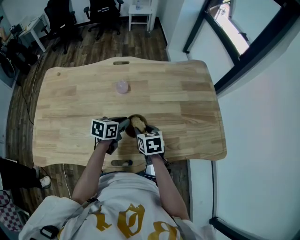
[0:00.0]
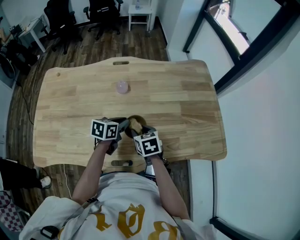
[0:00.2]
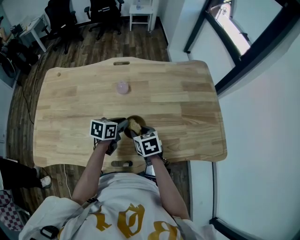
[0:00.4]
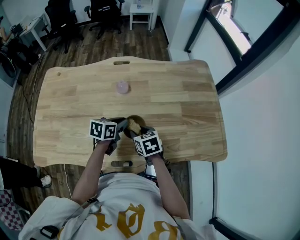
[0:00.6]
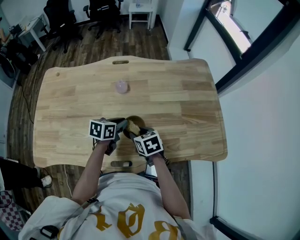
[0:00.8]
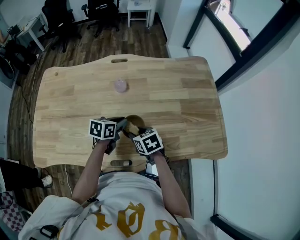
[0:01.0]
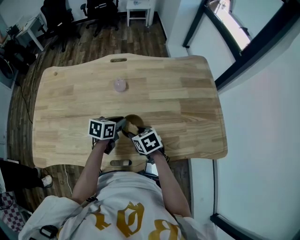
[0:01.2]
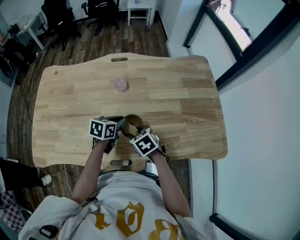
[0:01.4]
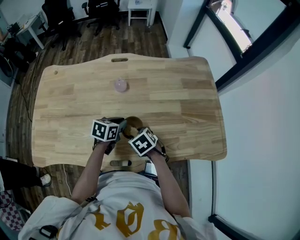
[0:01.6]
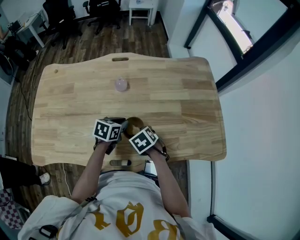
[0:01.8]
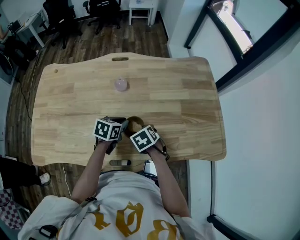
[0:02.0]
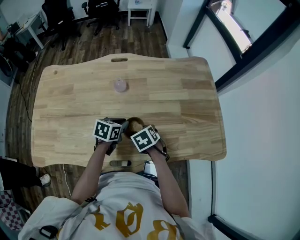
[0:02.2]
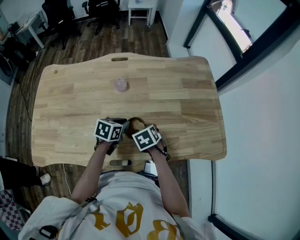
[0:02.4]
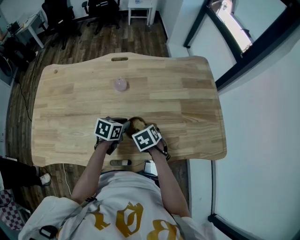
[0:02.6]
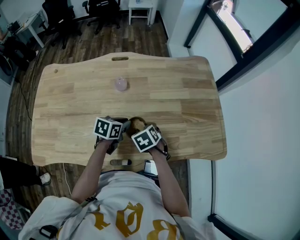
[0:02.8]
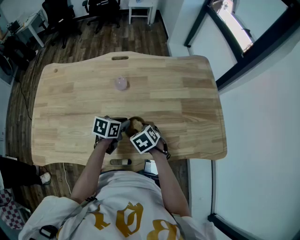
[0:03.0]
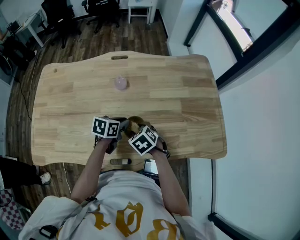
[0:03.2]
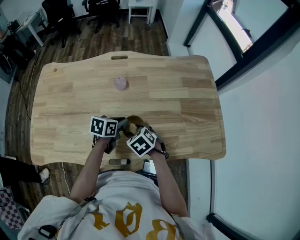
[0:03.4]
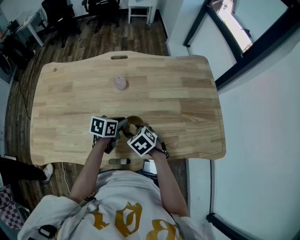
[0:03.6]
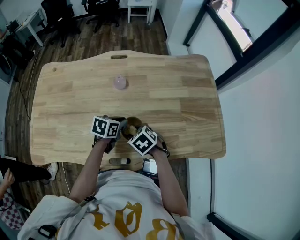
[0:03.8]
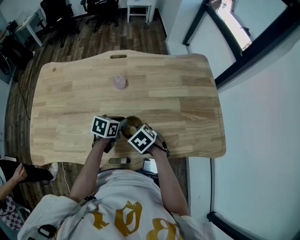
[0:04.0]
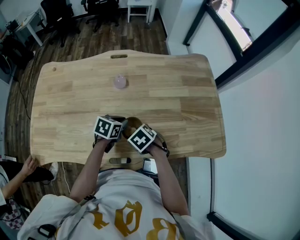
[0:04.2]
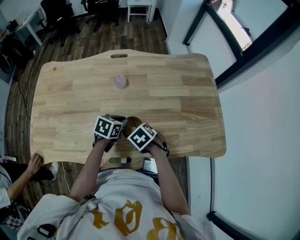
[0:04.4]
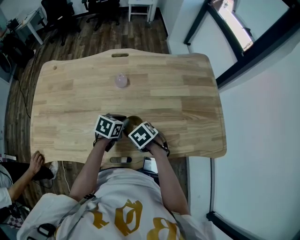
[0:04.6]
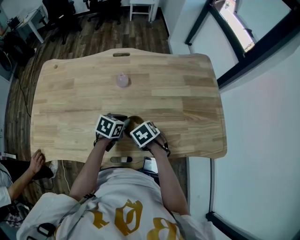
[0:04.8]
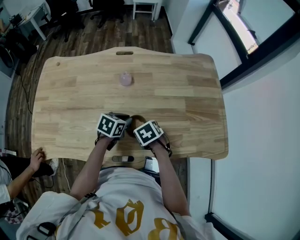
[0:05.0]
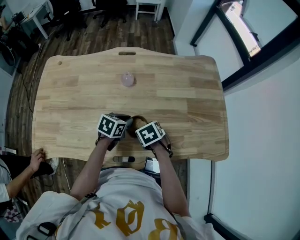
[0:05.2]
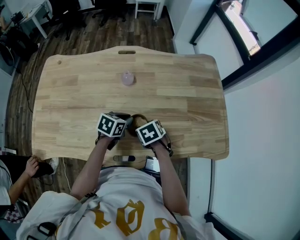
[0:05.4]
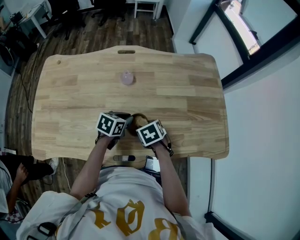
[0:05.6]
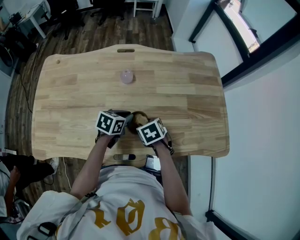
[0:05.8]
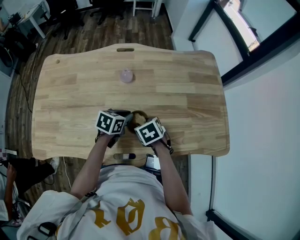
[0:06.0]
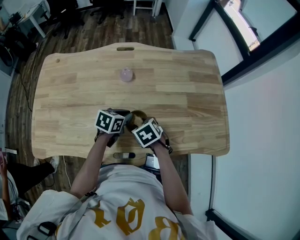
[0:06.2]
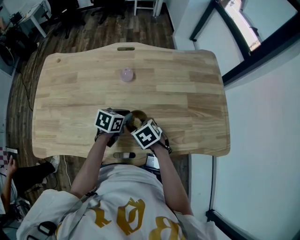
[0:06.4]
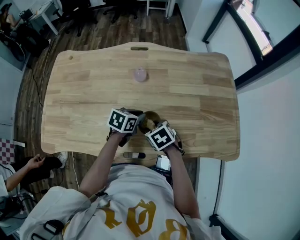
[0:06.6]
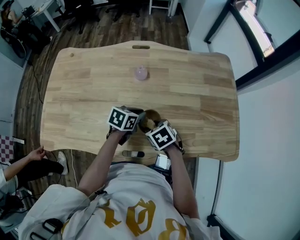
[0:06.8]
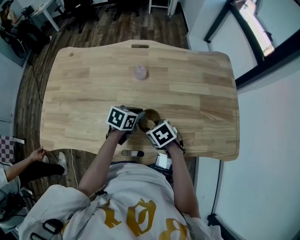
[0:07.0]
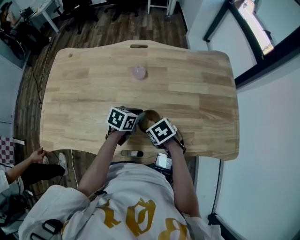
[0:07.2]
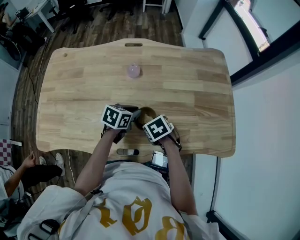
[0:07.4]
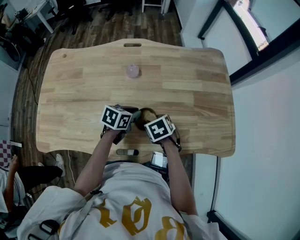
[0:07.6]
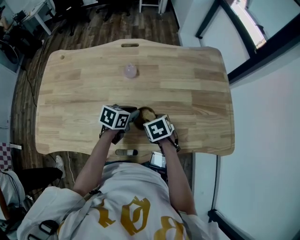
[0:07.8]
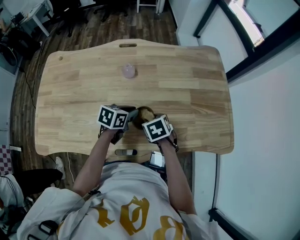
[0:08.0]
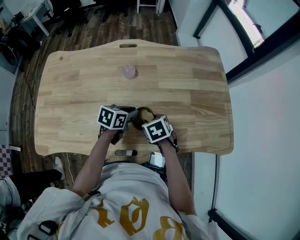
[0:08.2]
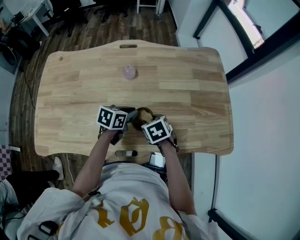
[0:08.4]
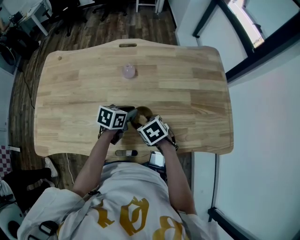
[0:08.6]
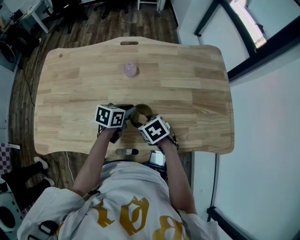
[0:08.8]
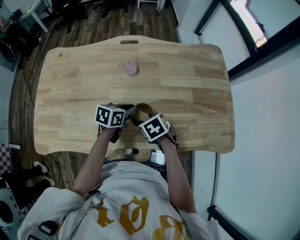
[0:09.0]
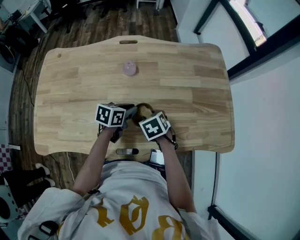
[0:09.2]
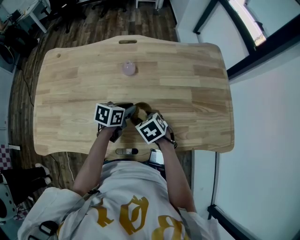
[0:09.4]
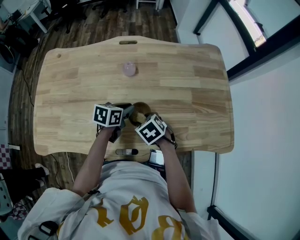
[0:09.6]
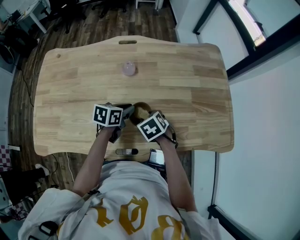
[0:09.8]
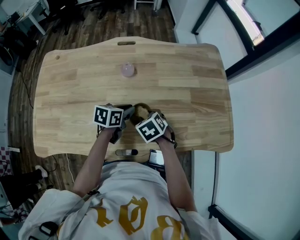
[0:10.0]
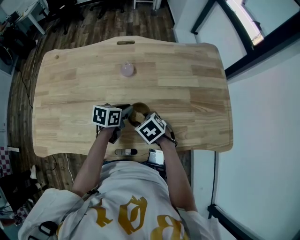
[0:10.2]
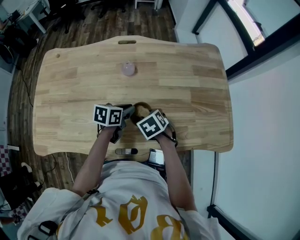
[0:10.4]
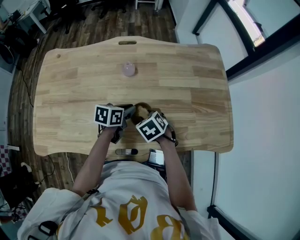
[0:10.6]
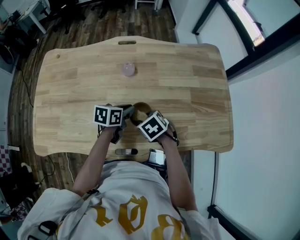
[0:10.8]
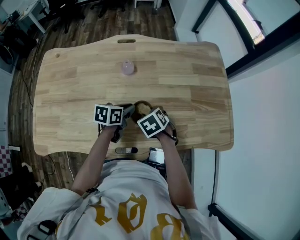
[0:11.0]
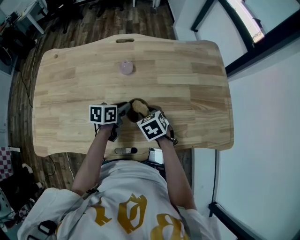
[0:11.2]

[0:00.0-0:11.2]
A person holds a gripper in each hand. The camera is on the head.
0:00.0 to 0:01.6: The right gripper shifts by about 5 cm, and turns by about 30 degrees.
0:01.6 to 0:06.4: The grippers move only a little.
0:06.4 to 0:08.0: The right gripper heads to the right, covering roughly 5 cm.
0:08.0 to 0:11.2: The grippers make only small movements.

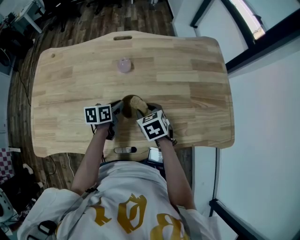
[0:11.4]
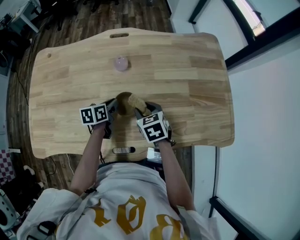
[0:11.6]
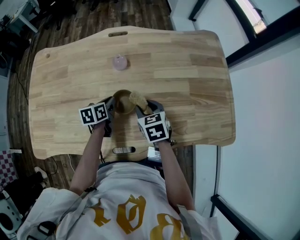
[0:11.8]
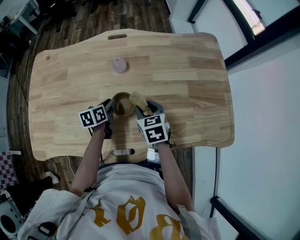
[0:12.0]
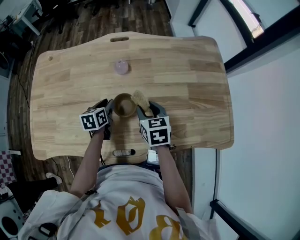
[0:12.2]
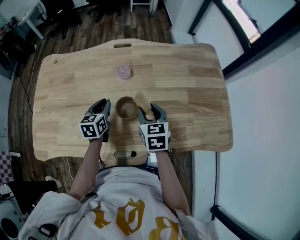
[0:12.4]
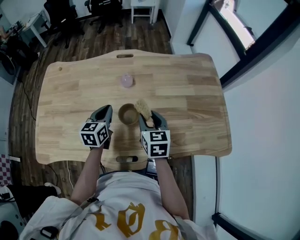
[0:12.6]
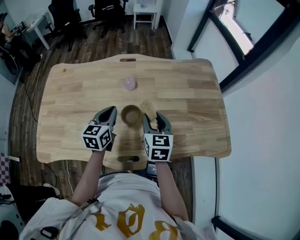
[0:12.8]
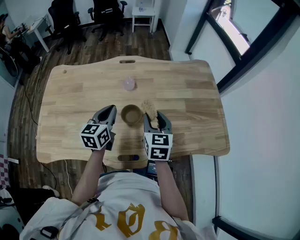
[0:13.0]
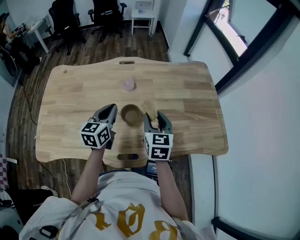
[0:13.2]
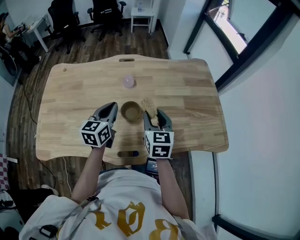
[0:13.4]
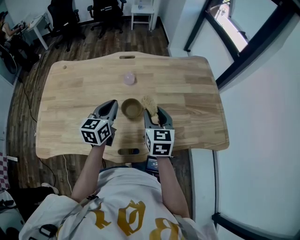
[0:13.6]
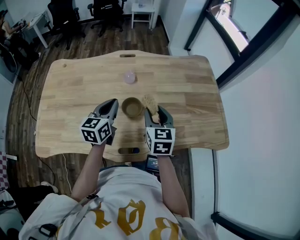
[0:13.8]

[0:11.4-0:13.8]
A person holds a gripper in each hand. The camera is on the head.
0:11.4 to 0:12.6: The right gripper is displaced upward by some 10 cm, and swivels some 30 degrees. The left gripper travels upward and to the left by about 10 cm, and swivels roughly 30 degrees.
0:12.6 to 0:13.8: The left gripper goes some 5 cm upward. The right gripper shifts by approximately 5 cm.

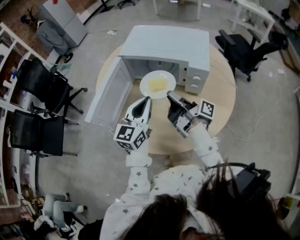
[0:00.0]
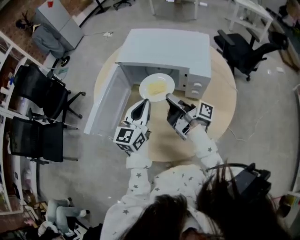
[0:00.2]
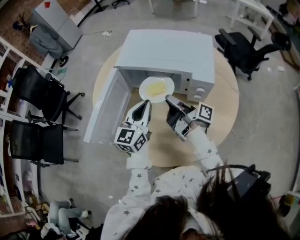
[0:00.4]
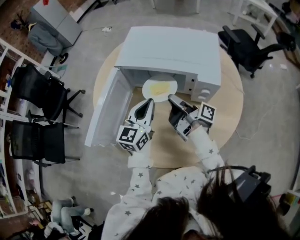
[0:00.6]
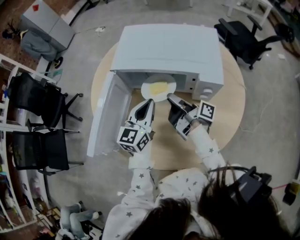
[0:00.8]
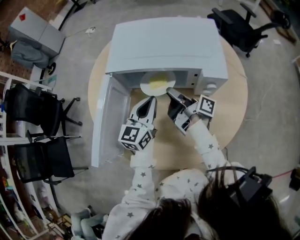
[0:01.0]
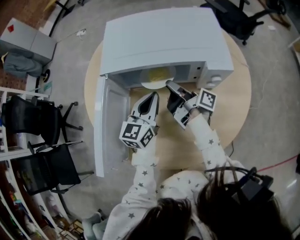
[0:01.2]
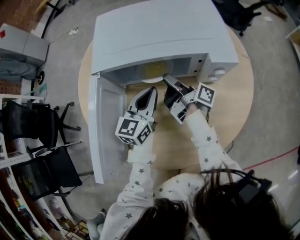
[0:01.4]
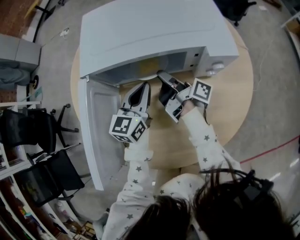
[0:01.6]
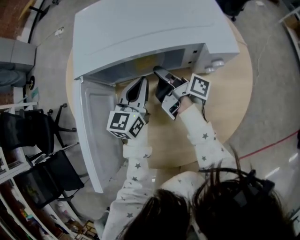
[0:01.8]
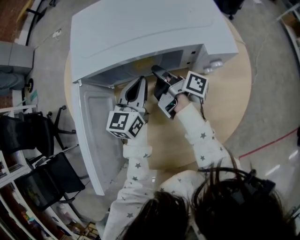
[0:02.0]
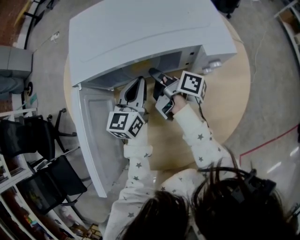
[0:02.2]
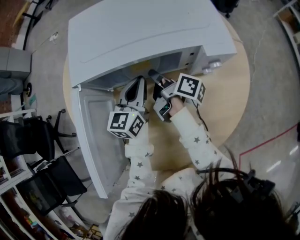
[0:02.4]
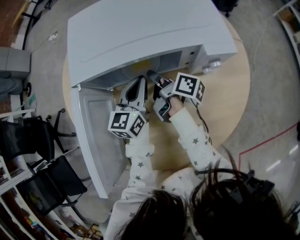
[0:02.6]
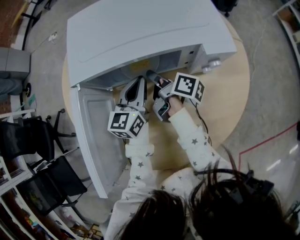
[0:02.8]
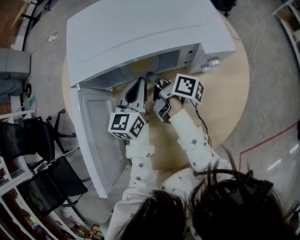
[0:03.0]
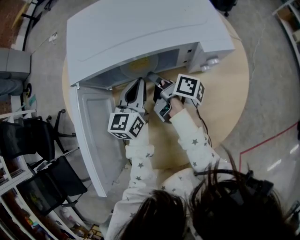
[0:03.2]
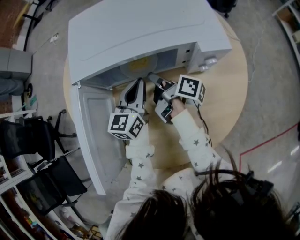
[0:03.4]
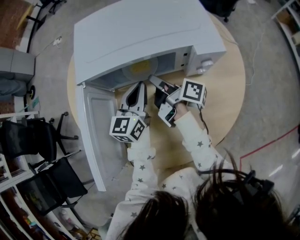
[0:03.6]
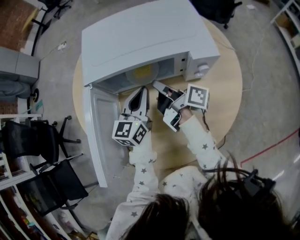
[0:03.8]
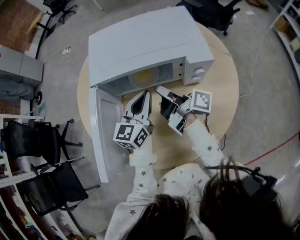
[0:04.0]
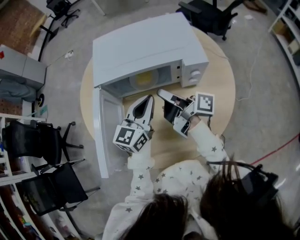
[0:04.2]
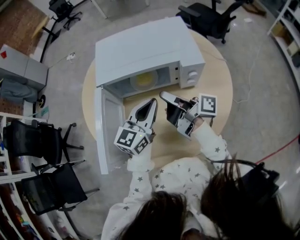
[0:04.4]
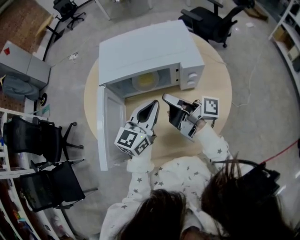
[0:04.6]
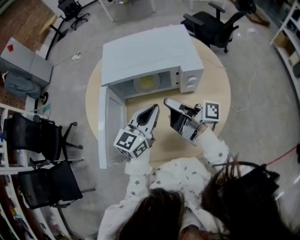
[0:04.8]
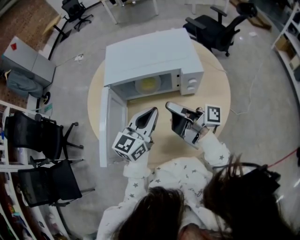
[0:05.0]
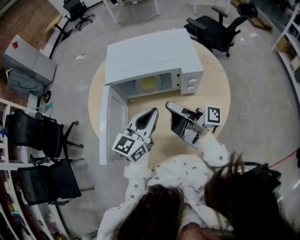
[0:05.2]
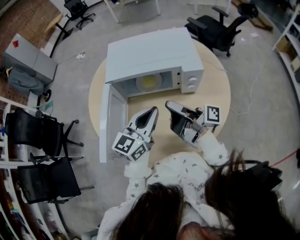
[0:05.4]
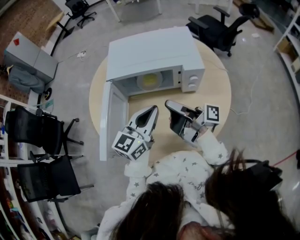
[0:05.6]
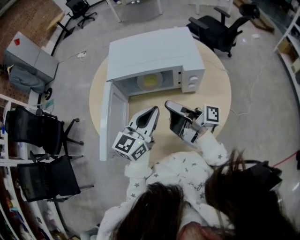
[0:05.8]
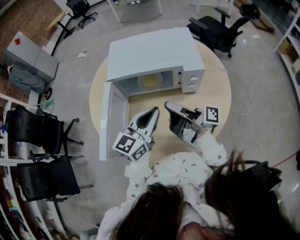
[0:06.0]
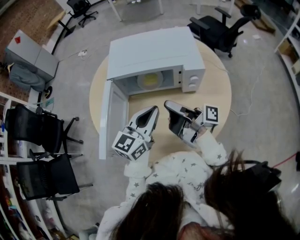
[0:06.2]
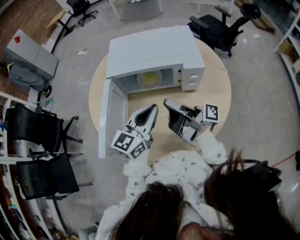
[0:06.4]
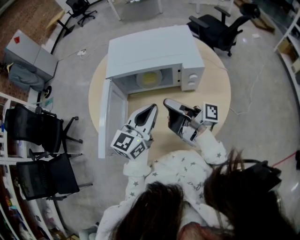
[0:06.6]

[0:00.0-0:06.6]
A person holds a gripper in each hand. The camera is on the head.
0:00.0 to 0:01.6: The left gripper changes place by some 25 cm, and turns by some 20 degrees.
0:03.2 to 0:05.0: The left gripper moves upward, roughly 15 cm.

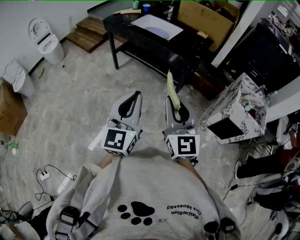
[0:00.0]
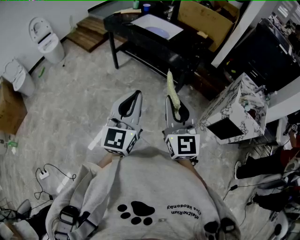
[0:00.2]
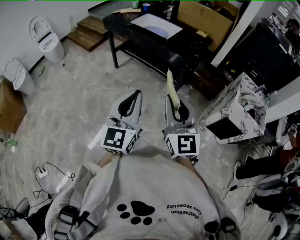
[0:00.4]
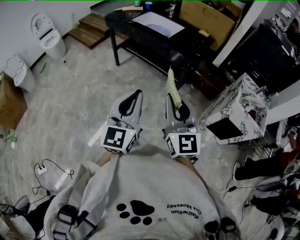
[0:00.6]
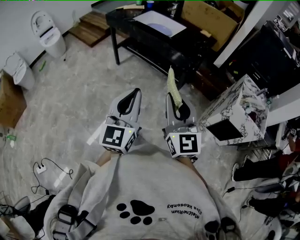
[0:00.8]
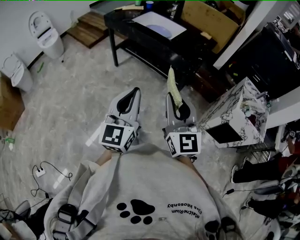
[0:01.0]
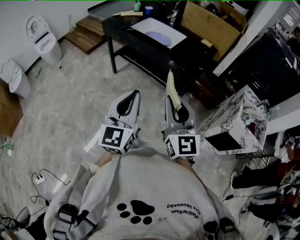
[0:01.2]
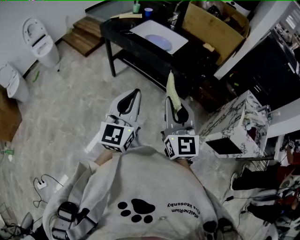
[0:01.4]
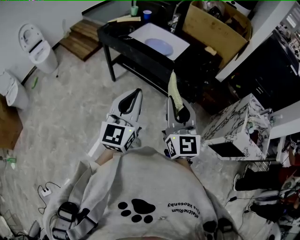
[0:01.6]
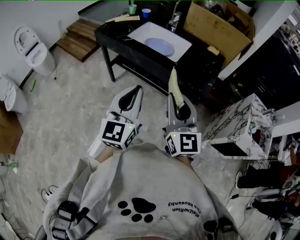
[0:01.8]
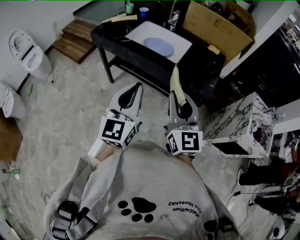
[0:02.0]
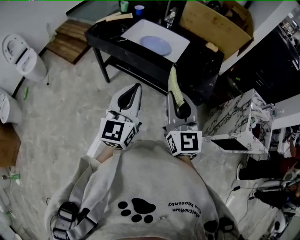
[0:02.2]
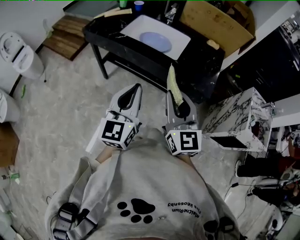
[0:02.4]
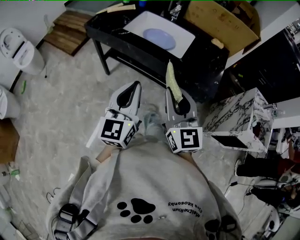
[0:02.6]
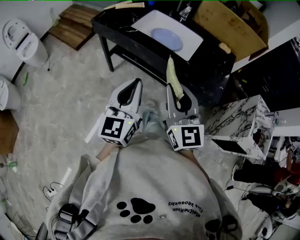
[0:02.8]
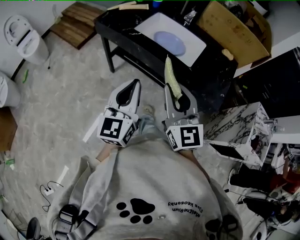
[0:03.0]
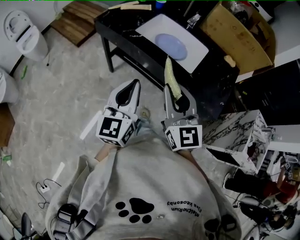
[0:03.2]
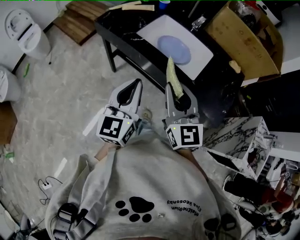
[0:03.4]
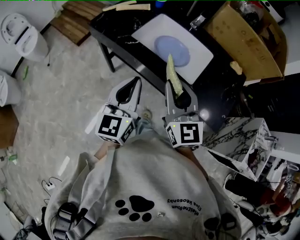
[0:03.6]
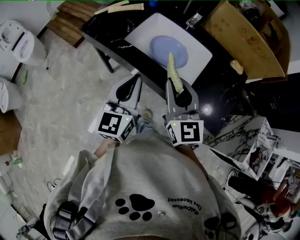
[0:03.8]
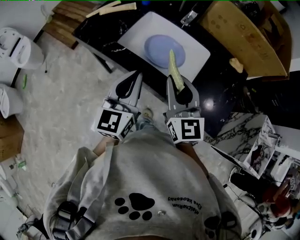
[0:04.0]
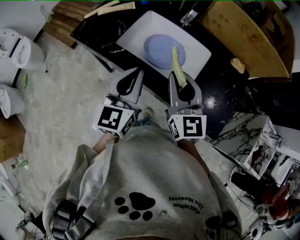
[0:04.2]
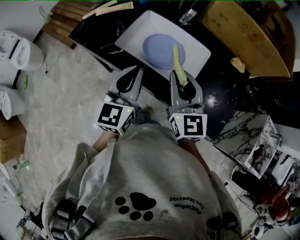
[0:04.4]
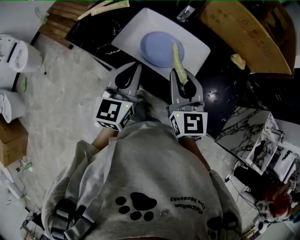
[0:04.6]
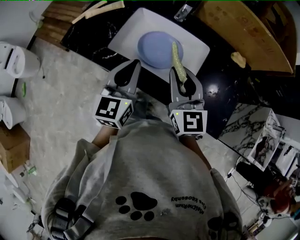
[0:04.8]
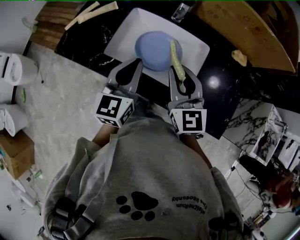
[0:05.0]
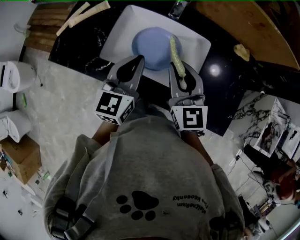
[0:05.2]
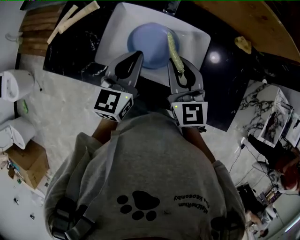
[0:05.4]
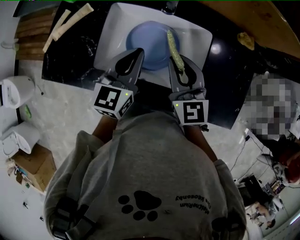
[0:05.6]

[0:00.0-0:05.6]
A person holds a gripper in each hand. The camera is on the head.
0:00.0 to 0:01.4: Both grippers move forward, roughly 20 cm.
0:01.4 to 0:02.8: Both grippers move forward and to the left, some 25 cm.
0:02.8 to 0:04.2: Both grippers travel together forward, about 30 cm.
0:04.2 to 0:05.6: The two grippers go some 20 cm forward and downward. The left gripper changes its angle by roughly 30 degrees.
